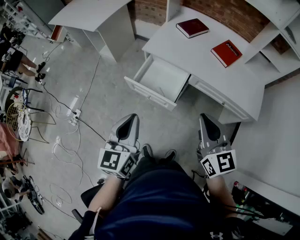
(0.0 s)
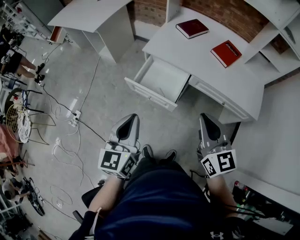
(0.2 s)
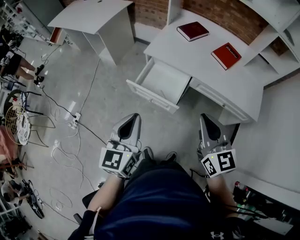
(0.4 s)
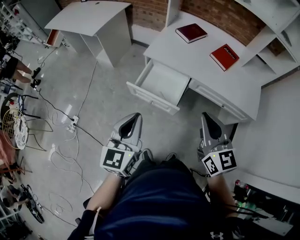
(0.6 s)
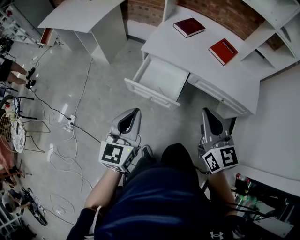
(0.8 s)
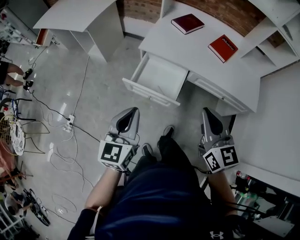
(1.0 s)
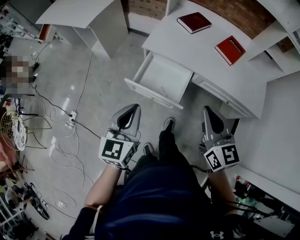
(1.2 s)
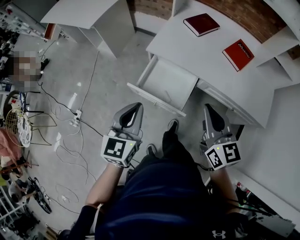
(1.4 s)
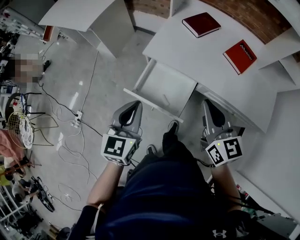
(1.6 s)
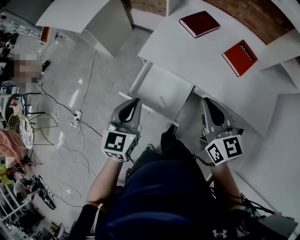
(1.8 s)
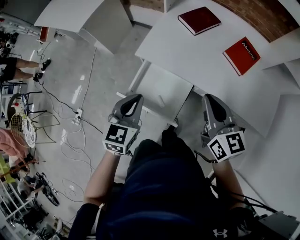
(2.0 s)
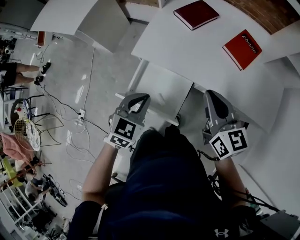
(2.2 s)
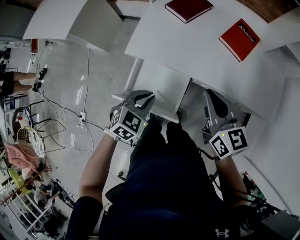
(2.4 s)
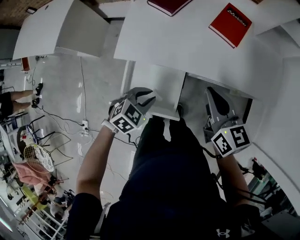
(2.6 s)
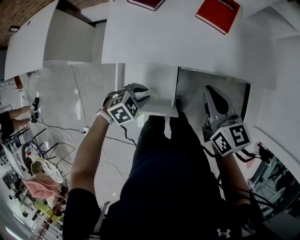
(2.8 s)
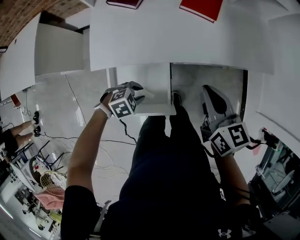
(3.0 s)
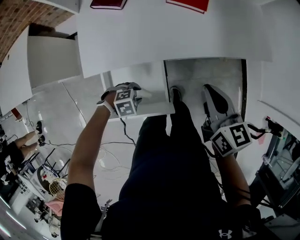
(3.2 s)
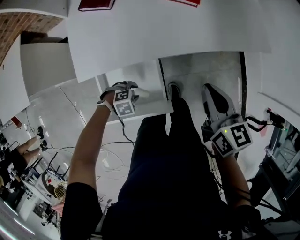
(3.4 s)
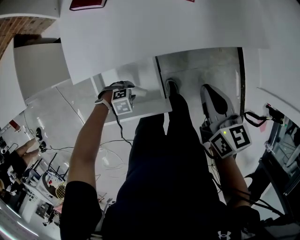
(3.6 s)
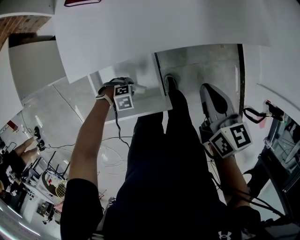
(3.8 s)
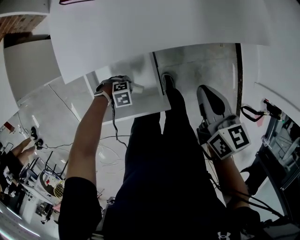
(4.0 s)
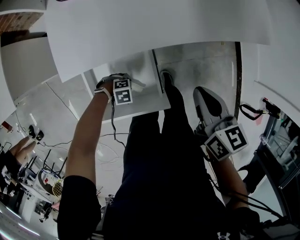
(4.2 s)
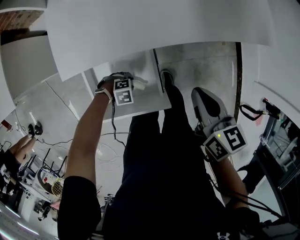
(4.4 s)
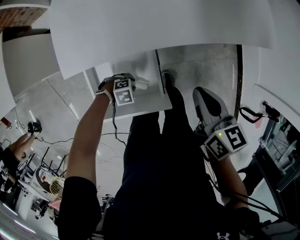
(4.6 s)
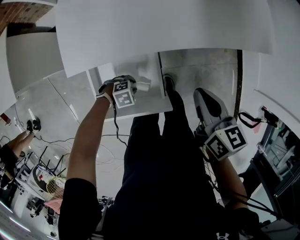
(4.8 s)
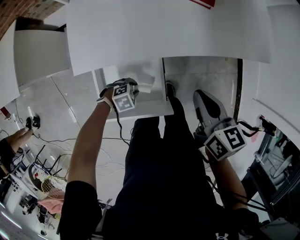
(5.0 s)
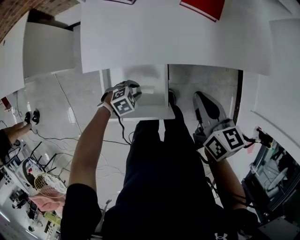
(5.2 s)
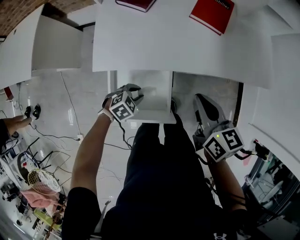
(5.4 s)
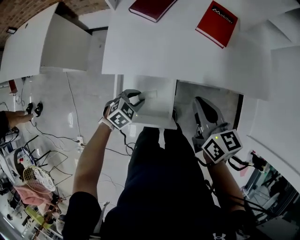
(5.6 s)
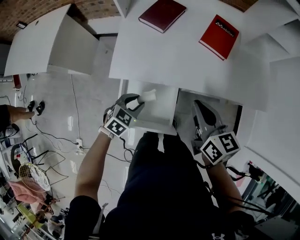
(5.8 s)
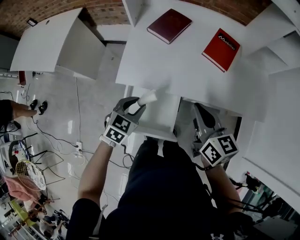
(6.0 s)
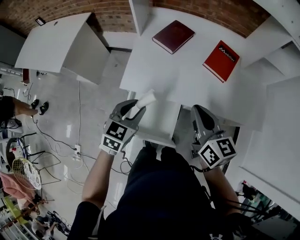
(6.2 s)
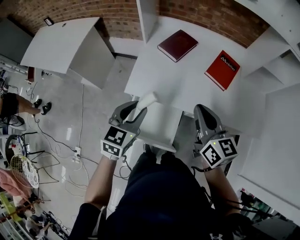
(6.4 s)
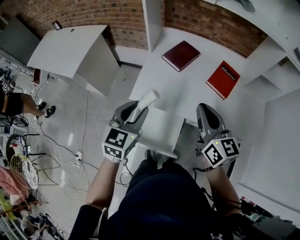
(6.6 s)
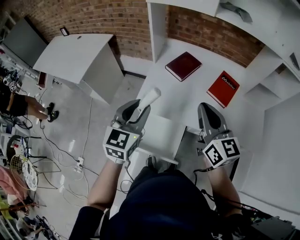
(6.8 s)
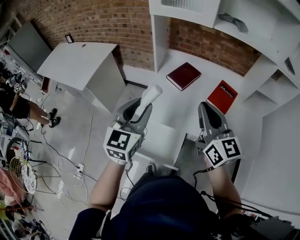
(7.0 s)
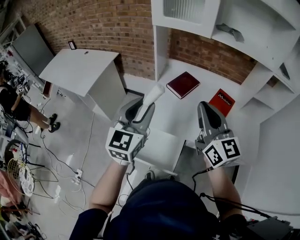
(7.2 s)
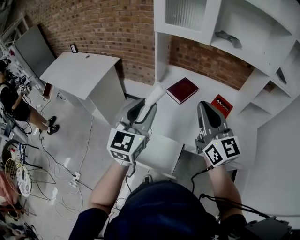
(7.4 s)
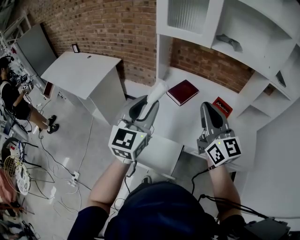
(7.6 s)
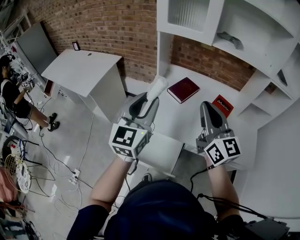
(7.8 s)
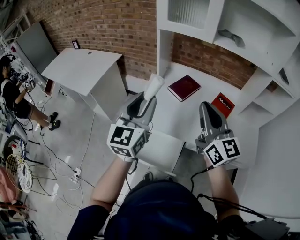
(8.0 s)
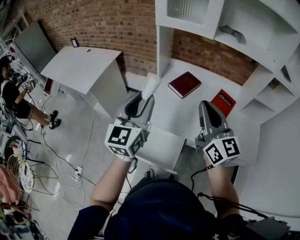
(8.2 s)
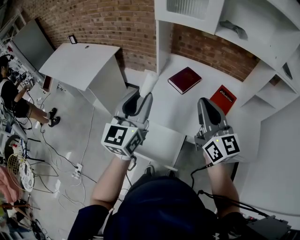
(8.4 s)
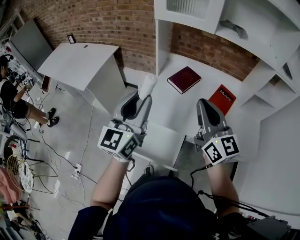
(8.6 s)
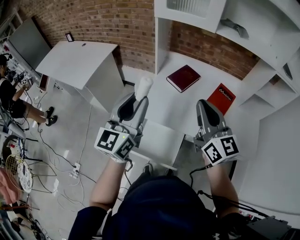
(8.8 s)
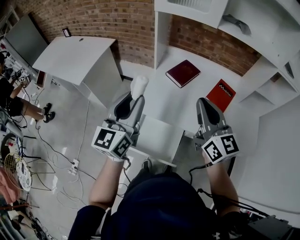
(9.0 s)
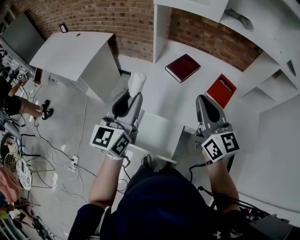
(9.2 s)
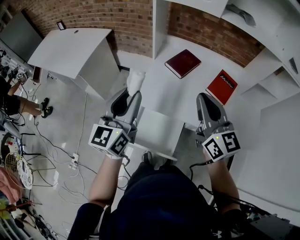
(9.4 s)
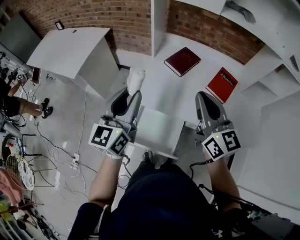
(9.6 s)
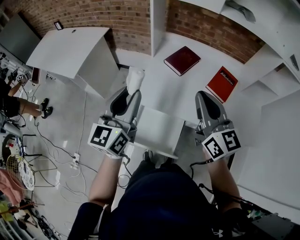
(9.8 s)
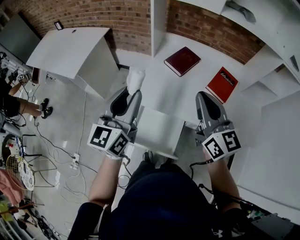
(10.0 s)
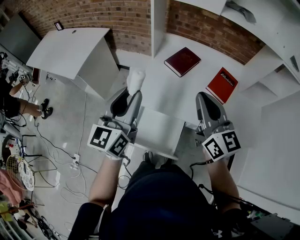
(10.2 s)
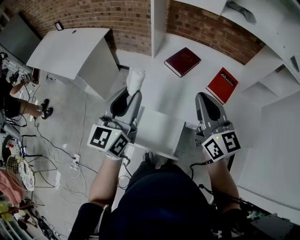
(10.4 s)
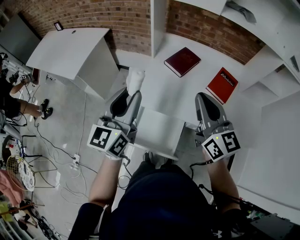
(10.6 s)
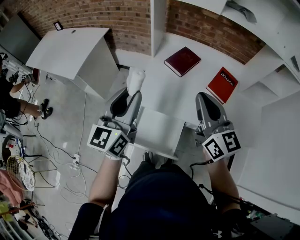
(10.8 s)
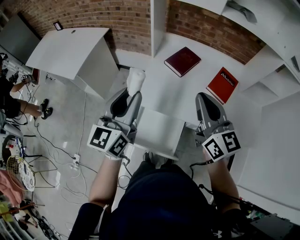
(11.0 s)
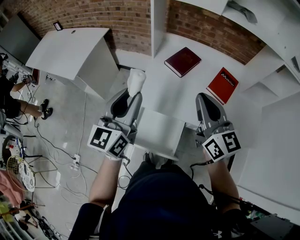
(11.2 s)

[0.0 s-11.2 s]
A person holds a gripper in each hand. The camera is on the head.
0.0 to 1.6 s: The grippers both shift forward by roughly 20 cm.
1.6 to 3.2 s: The right gripper ends up approximately 20 cm from where it was, and rotates approximately 40 degrees. Meanwhile the left gripper travels downward by approximately 30 cm, angles its fingers downward, by about 50 degrees, and opens.
3.2 to 4.8 s: The left gripper travels downward by some 10 cm. Meanwhile the right gripper travels downward by some 5 cm.
4.8 to 6.4 s: The left gripper goes about 40 cm upward, and tilts its fingers some 40 degrees upward; the right gripper shifts approximately 20 cm upward, and swivels some 30 degrees.
6.4 to 8.0 s: The grippers both shift upward by about 20 cm. The left gripper points its fingers approximately 30 degrees further upward, while the right gripper rotates roughly 30 degrees.
8.0 to 9.6 s: Both grippers travel together downward, some 5 cm.
9.6 to 11.2 s: The two grippers keep their place.

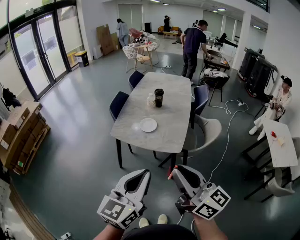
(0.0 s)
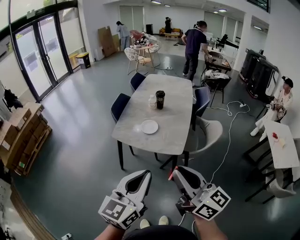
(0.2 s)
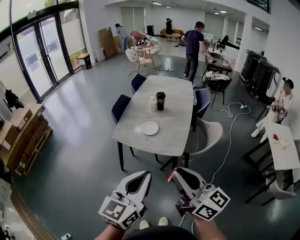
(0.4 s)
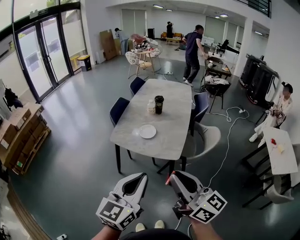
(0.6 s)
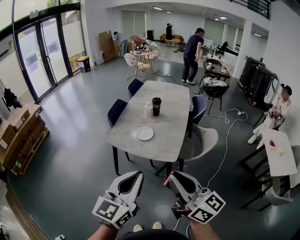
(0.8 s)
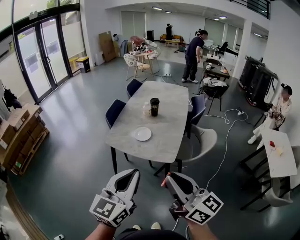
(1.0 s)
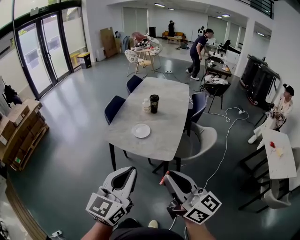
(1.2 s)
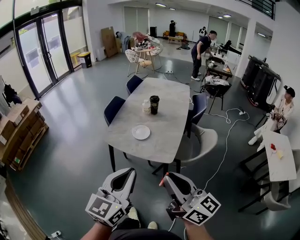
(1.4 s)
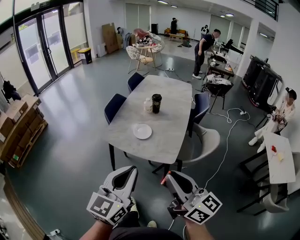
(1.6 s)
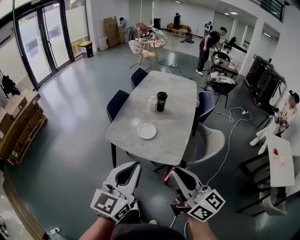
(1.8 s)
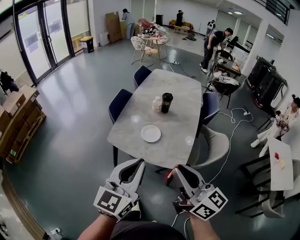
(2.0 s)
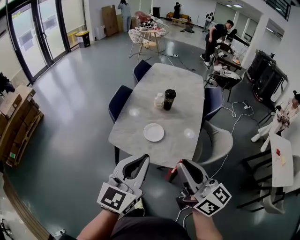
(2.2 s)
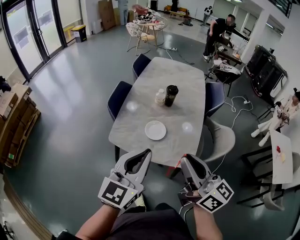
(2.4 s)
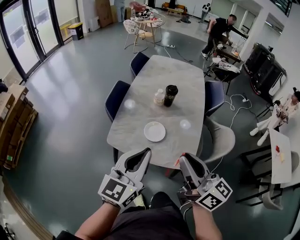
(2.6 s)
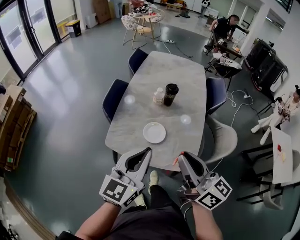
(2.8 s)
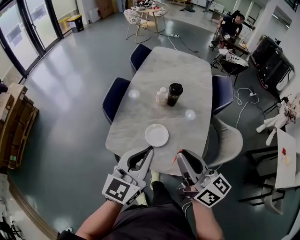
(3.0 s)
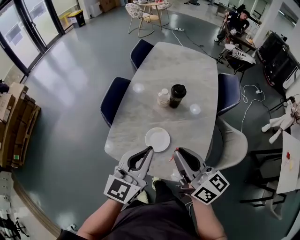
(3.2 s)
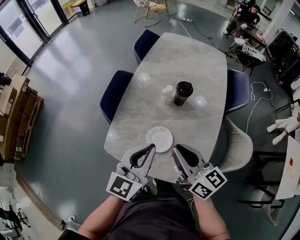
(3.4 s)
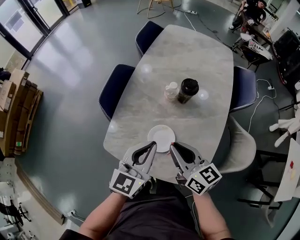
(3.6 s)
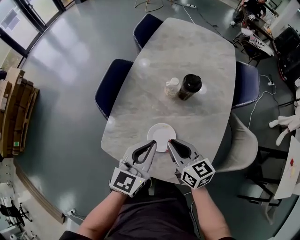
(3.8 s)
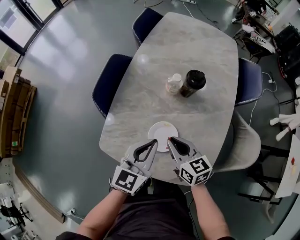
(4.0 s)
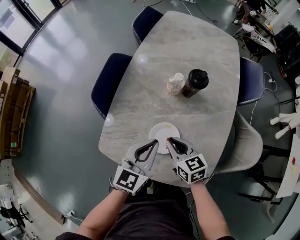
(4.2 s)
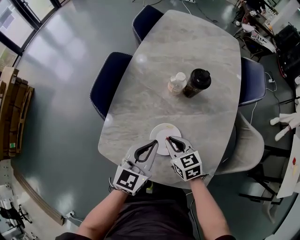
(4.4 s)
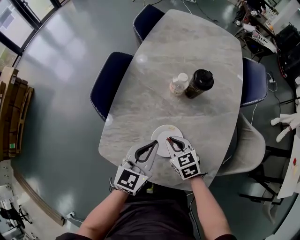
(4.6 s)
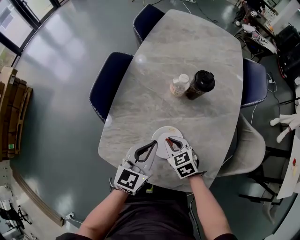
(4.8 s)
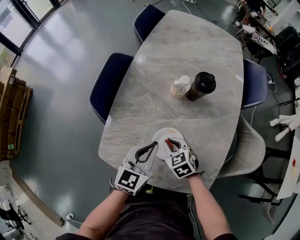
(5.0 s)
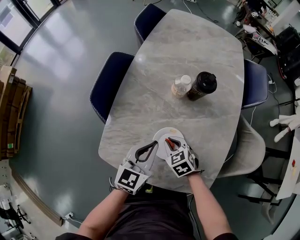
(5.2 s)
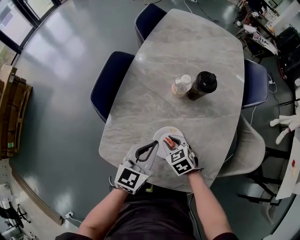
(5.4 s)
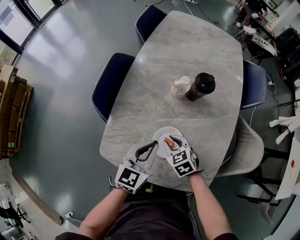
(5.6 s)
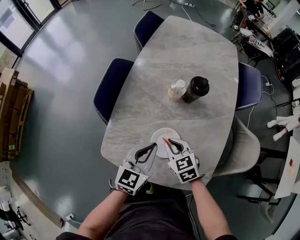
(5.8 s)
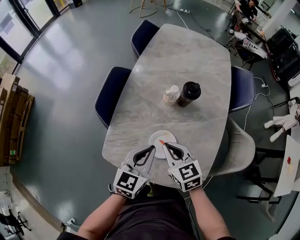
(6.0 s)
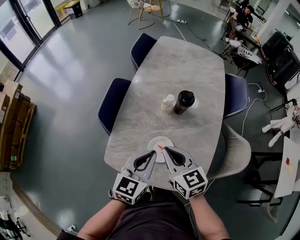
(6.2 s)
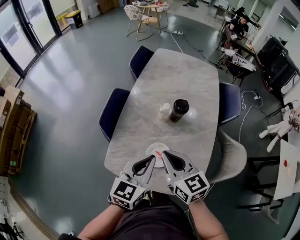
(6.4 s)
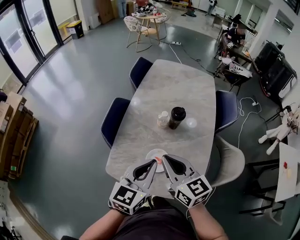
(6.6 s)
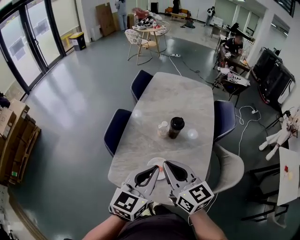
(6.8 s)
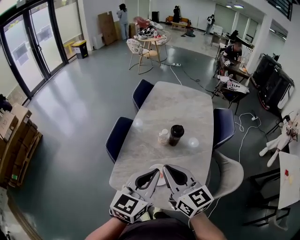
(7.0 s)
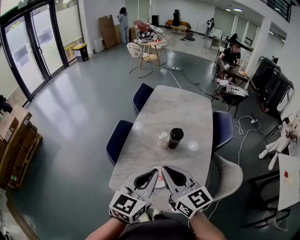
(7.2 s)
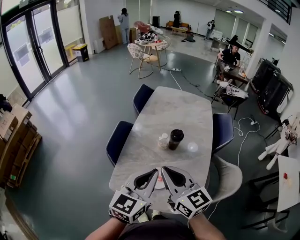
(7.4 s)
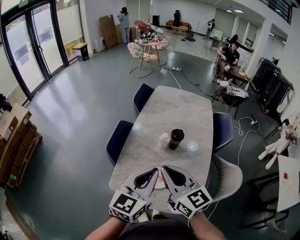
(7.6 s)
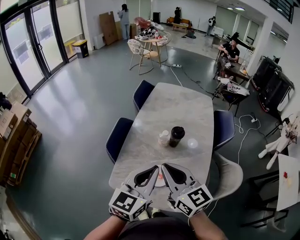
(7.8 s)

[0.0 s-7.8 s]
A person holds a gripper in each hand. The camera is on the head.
0.0 to 1.6 s: The right gripper shifts approximately 10 cm forward and to the right. Meanwhile the left gripper shifts approximately 10 cm forward.
1.6 to 3.2 s: The two grippers go roughly 40 cm forward.
3.2 to 4.6 s: The right gripper heads downward, covering approximately 35 cm, and tips its fingers downward by approximately 50 degrees. The left gripper heads downward and forward, covering approximately 25 cm.
4.6 to 6.2 s: The left gripper travels upward by approximately 10 cm; the right gripper shifts about 25 cm upward, and changes its angle by approximately 20 degrees.
6.2 to 7.8 s: The two grippers go approximately 15 cm upward. The right gripper swivels roughly 20 degrees.

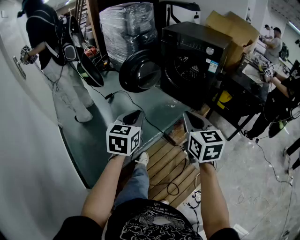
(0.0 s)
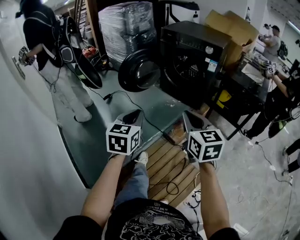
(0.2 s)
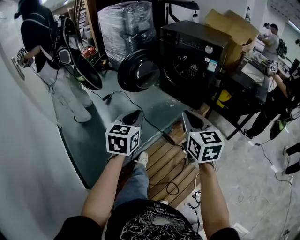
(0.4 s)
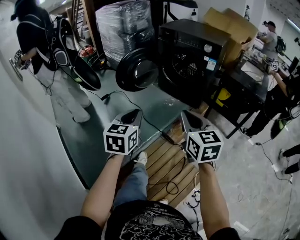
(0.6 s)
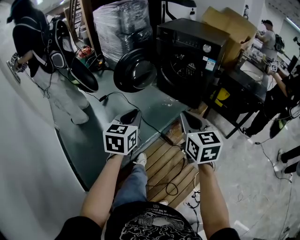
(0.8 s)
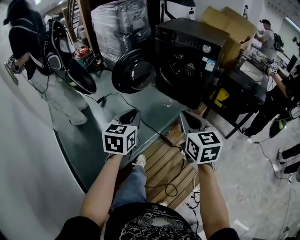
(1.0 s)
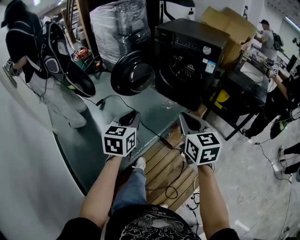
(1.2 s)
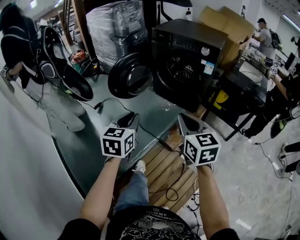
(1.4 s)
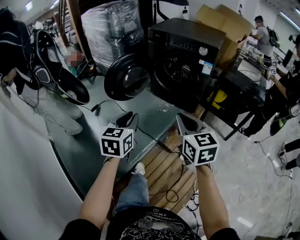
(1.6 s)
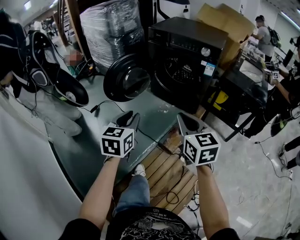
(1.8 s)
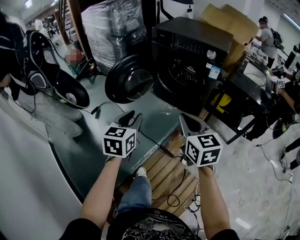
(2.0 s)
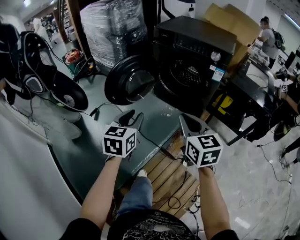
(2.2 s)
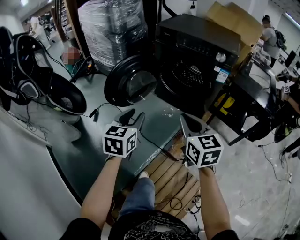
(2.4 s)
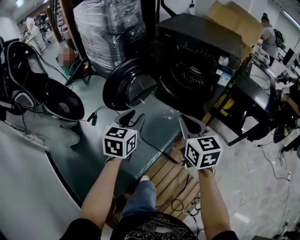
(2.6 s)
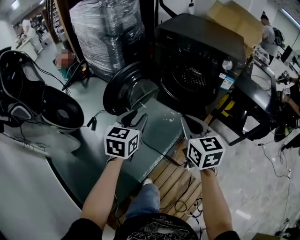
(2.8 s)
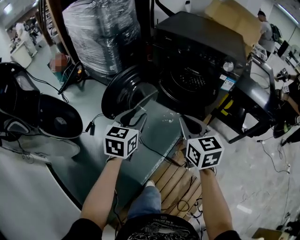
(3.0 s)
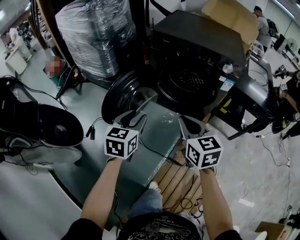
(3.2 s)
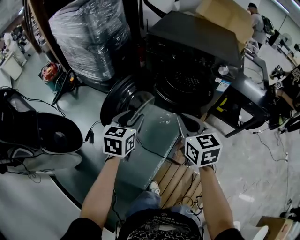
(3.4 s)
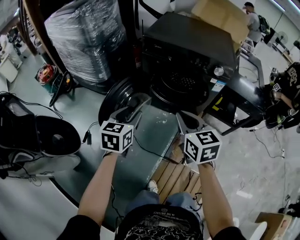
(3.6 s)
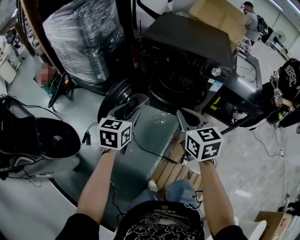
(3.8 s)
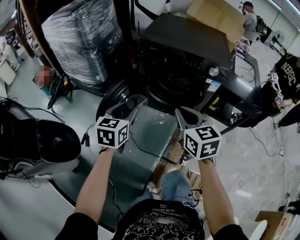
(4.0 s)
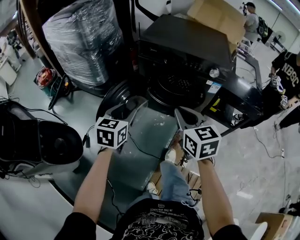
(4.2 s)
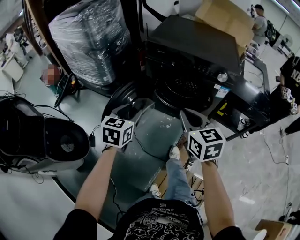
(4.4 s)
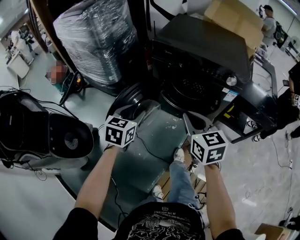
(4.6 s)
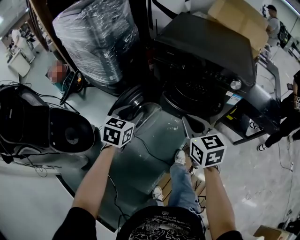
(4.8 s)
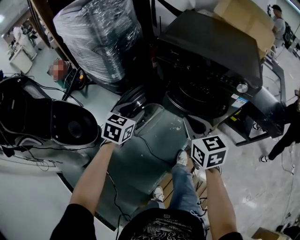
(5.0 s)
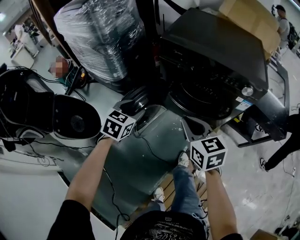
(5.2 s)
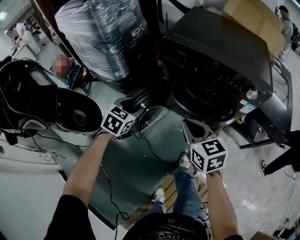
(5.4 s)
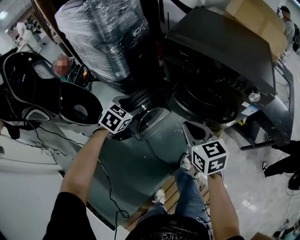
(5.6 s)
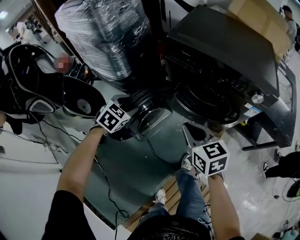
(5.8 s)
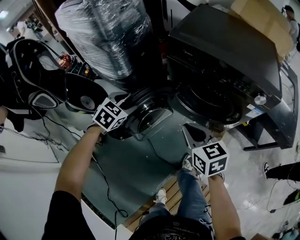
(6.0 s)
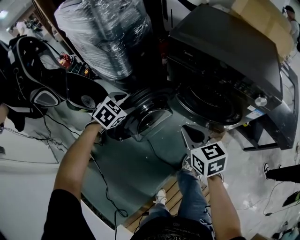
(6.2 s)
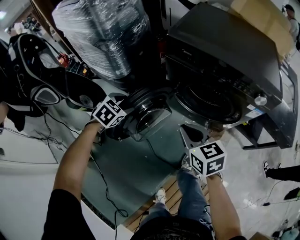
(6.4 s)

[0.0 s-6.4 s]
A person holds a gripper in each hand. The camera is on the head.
0.0 to 1.6 s: The grippers both shift forward by roughly 10 cm.
1.6 to 3.2 s: The left gripper heads forward, covering some 30 cm, and opens its fingers; the right gripper goes approximately 30 cm forward and to the left.
3.2 to 4.8 s: Both grippers move forward, some 10 cm.
4.8 to 6.4 s: The left gripper shifts roughly 15 cm forward, downward and to the left, and changes its angle by some 30 degrees. Meanwhile the right gripper travels downward and forward by about 10 cm.
